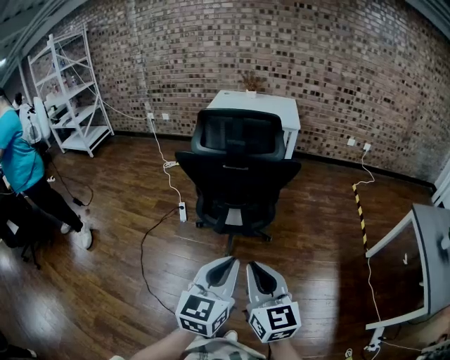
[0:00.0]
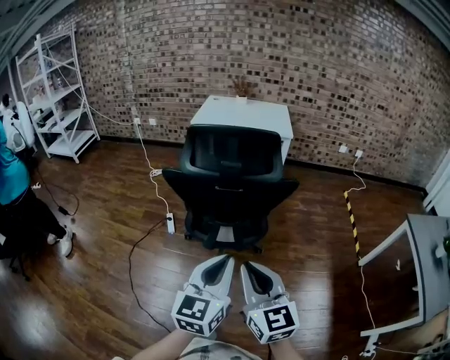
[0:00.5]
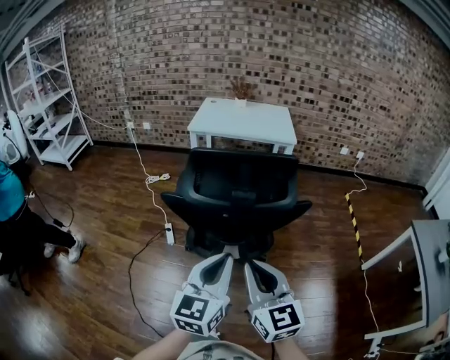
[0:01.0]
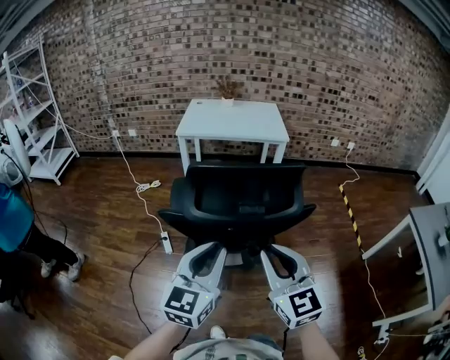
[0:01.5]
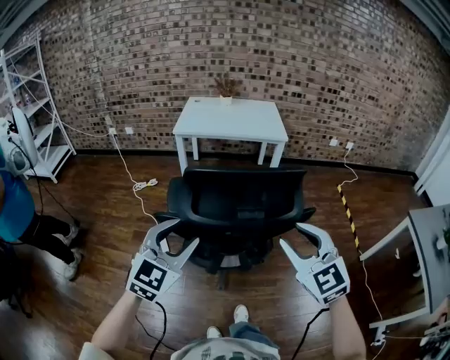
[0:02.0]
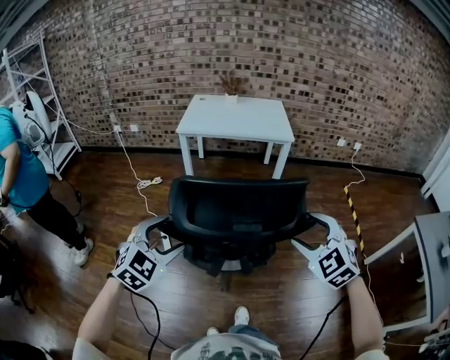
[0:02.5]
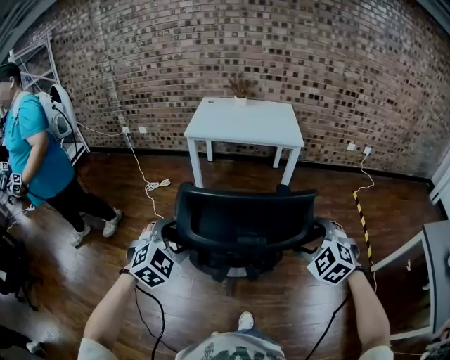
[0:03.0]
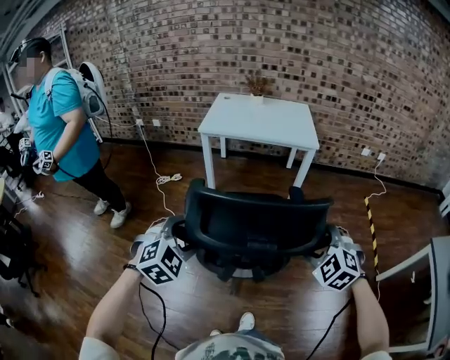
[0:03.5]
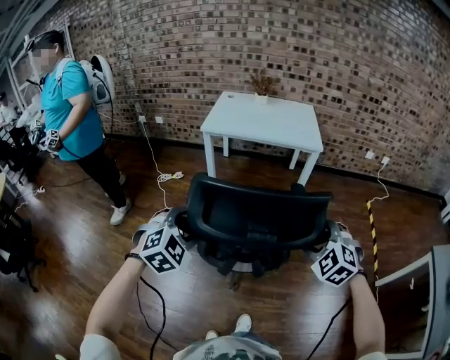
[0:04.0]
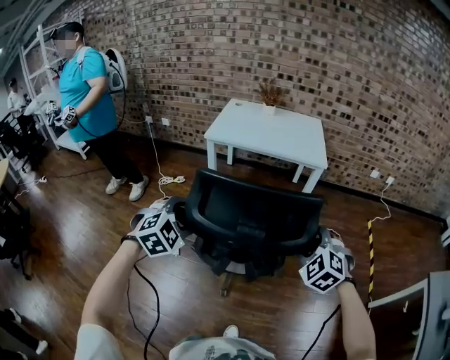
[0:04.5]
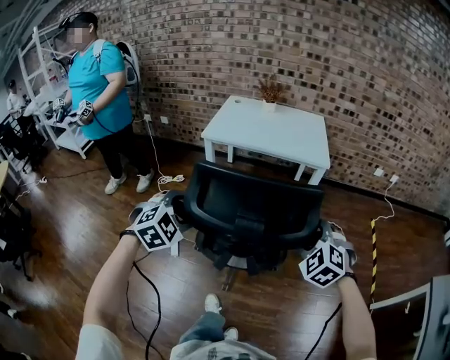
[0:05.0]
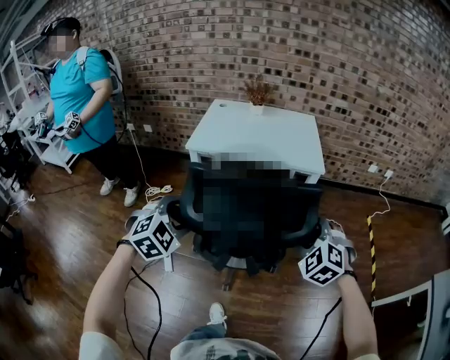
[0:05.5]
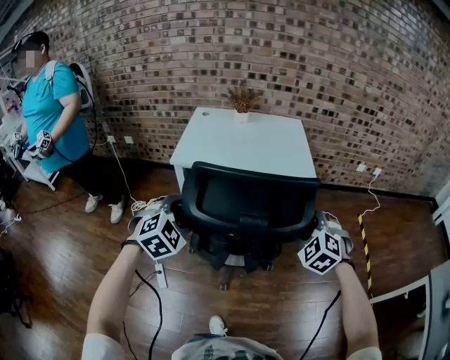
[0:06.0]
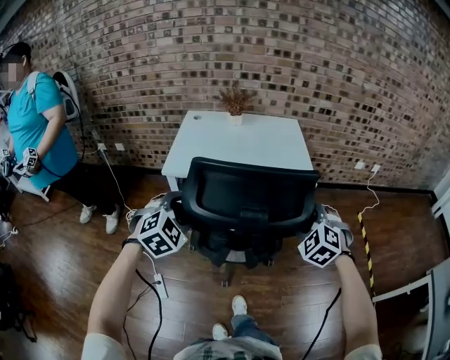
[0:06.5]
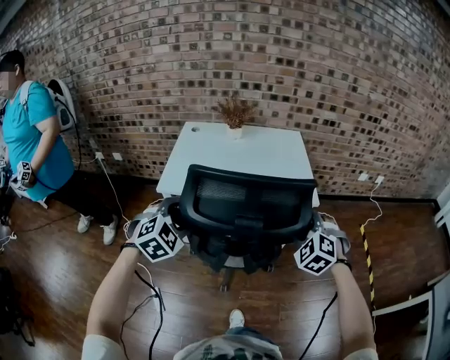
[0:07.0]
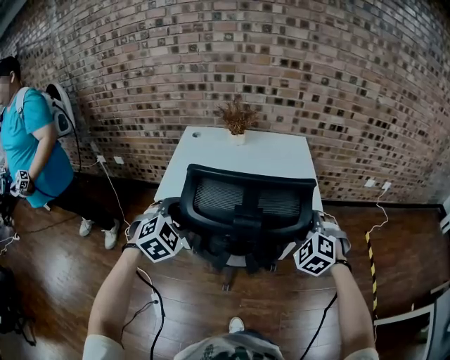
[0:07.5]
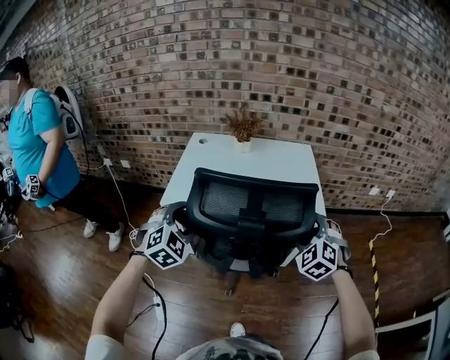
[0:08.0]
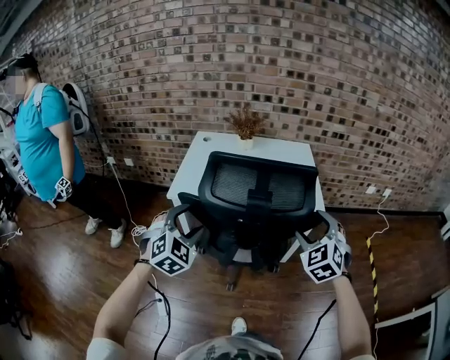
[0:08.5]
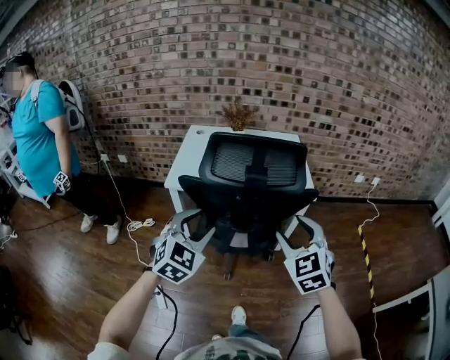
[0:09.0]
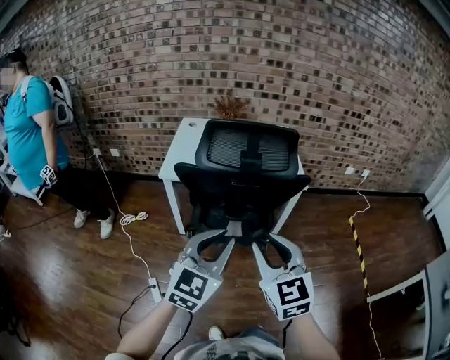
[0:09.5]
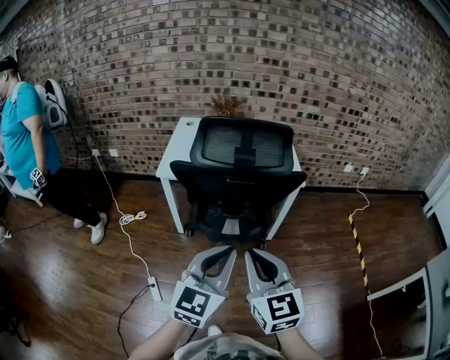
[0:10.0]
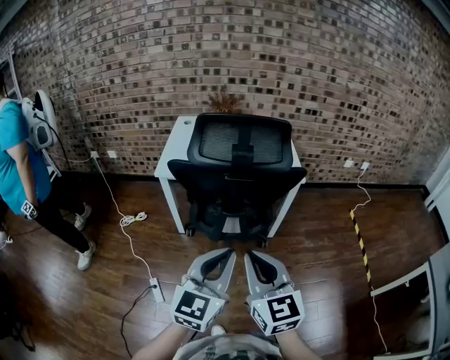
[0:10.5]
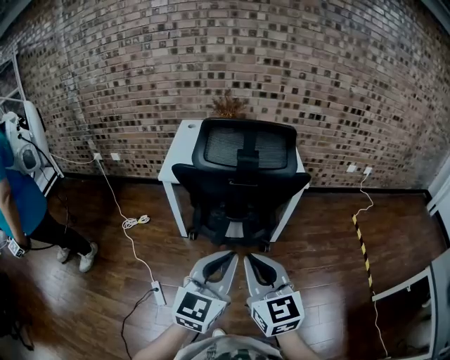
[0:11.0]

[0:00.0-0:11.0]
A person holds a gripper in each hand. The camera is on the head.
0:00.0 to 0:02.0: The left gripper shifts roughly 35 cm forward and to the left, turns by about 30 degrees, and opens, while the right gripper moves forward, approximately 30 cm, swivels roughly 30 degrees, and opens.
0:02.0 to 0:03.5: The right gripper heads forward, downward and to the right, covering about 15 cm, rotates some 30 degrees, and opens up; the left gripper moves forward and downward, about 10 cm, and turns by approximately 30 degrees.
0:03.5 to 0:05.5: The grippers both shift forward by roughly 25 cm.
0:05.5 to 0:07.5: The two grippers go approximately 35 cm forward.
0:07.5 to 0:09.0: The right gripper moves backward and upward, roughly 20 cm, and swivels approximately 30 degrees; the left gripper goes roughly 15 cm backward, and turns by some 20 degrees.
0:09.0 to 0:11.0: The left gripper moves backward and to the right, roughly 15 cm, changes its angle by approximately 30 degrees, and closes its fingers. Meanwhile the right gripper travels backward and to the left by some 15 cm, rotates roughly 30 degrees, and closes.

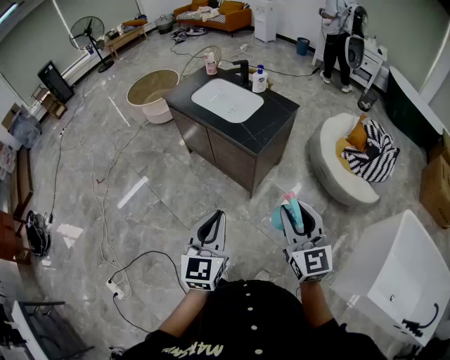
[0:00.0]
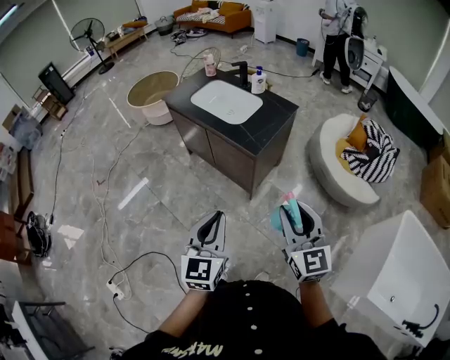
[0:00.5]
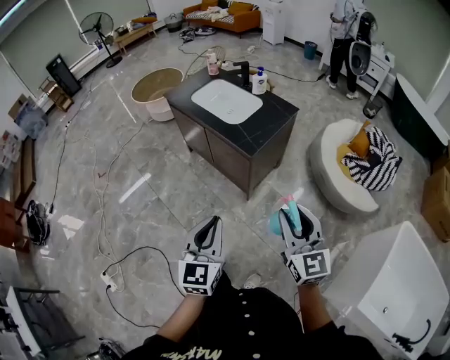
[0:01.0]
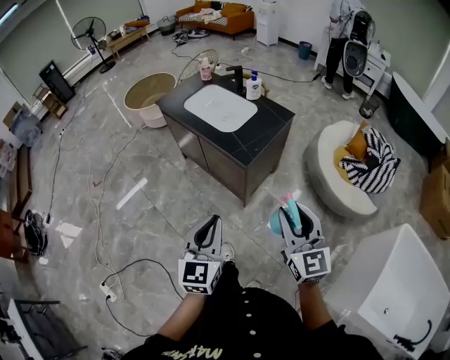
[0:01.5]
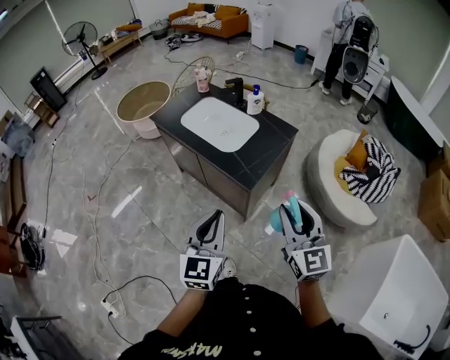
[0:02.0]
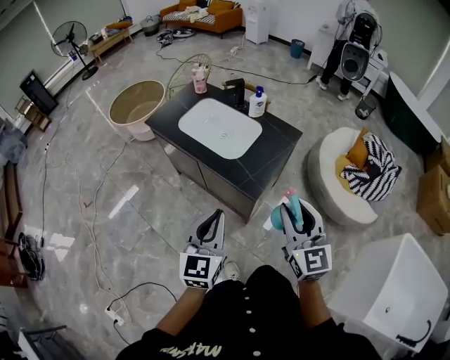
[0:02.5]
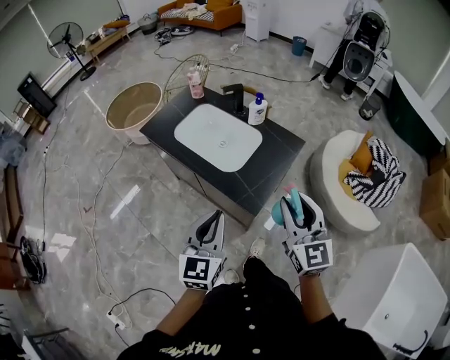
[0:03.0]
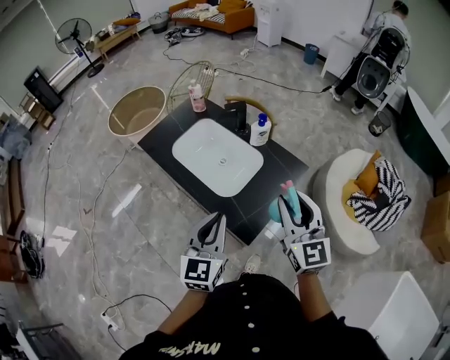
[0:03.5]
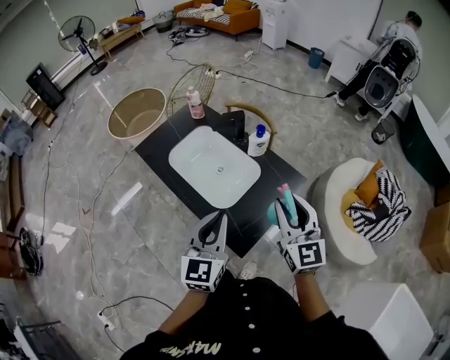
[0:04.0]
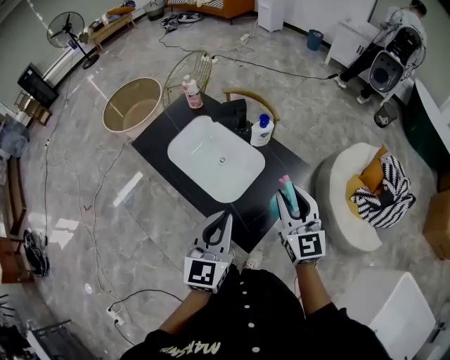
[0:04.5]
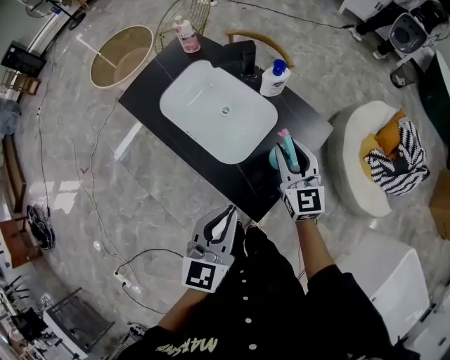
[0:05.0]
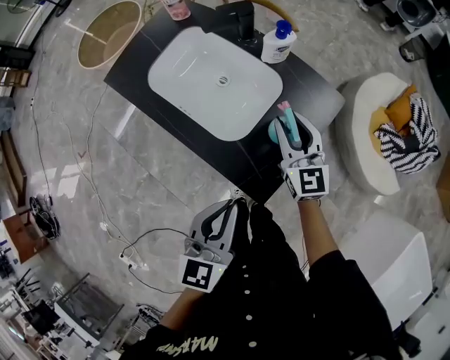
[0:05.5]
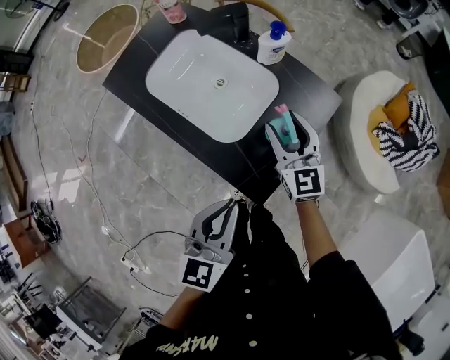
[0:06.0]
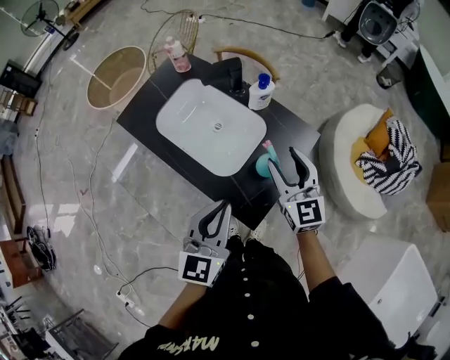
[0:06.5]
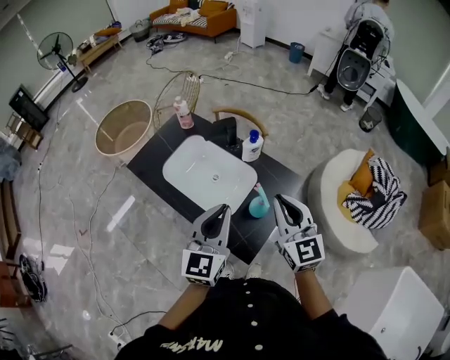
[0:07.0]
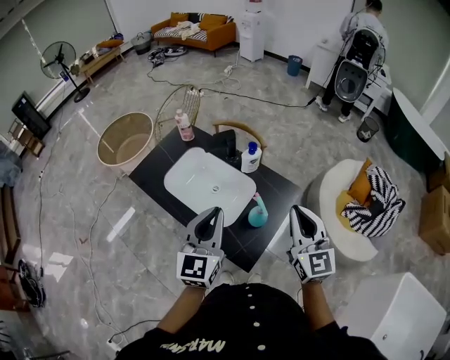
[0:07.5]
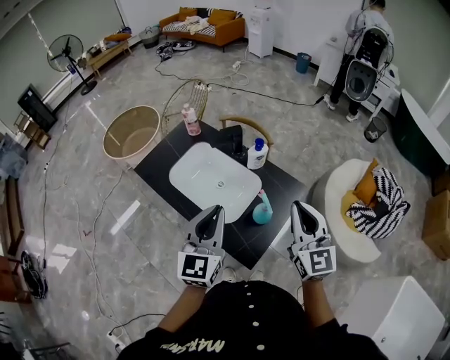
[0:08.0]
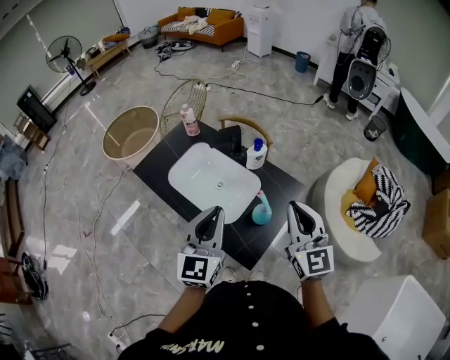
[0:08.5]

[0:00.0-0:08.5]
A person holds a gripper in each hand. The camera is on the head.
0:00.0 to 0:02.0: Both grippers move forward, about 20 cm.
0:02.0 to 0:04.0: Both grippers travel together forward, some 35 cm.
0:04.0 to 0:06.5: The left gripper travels downward by about 5 cm. The right gripper goes about 15 cm downward and forward, and opens up.
0:06.5 to 0:08.5: The right gripper is displaced upward by about 15 cm, and closes its fingers. The left gripper heads upward and forward, covering about 10 cm.

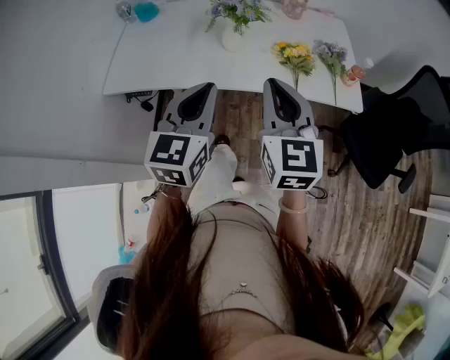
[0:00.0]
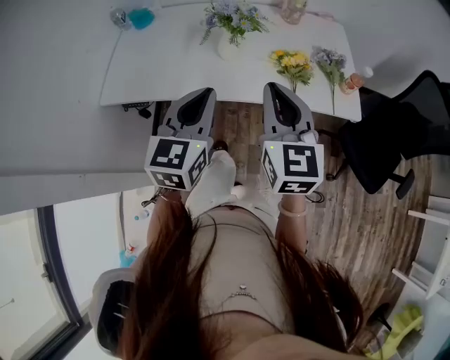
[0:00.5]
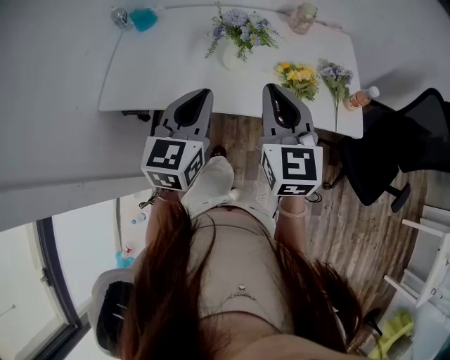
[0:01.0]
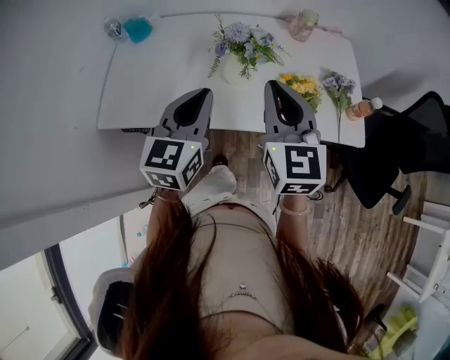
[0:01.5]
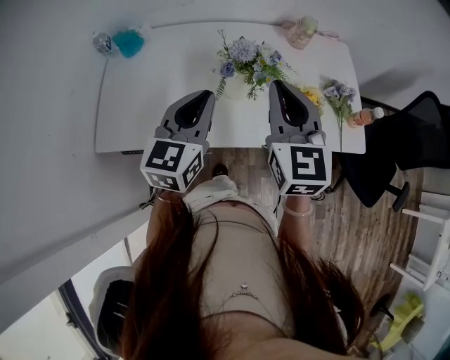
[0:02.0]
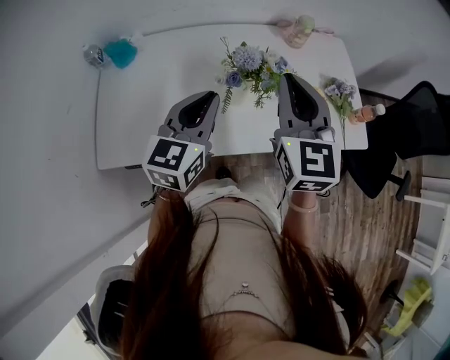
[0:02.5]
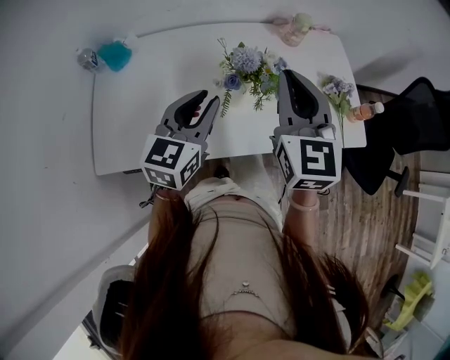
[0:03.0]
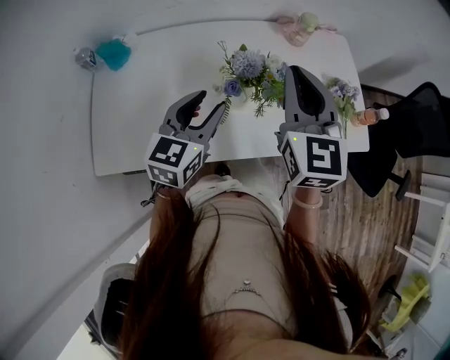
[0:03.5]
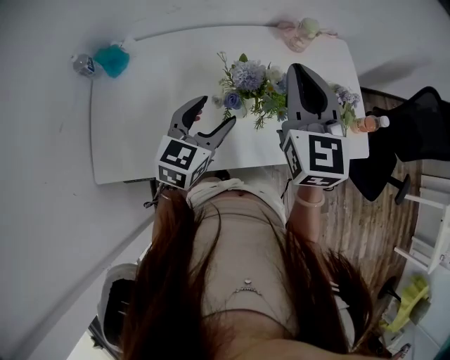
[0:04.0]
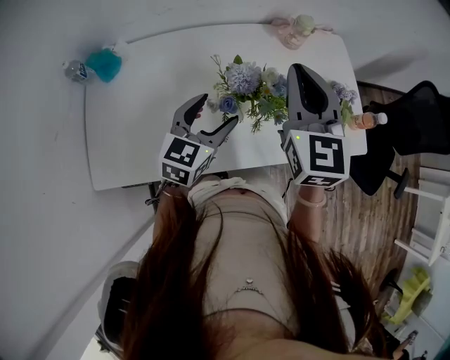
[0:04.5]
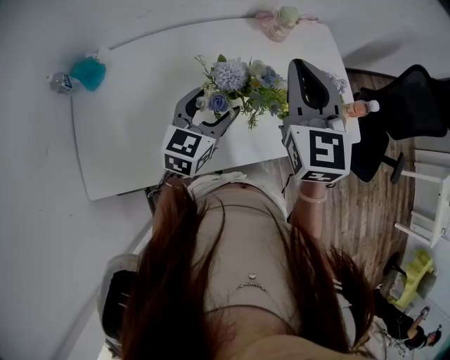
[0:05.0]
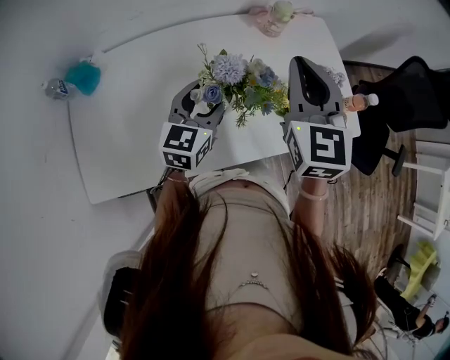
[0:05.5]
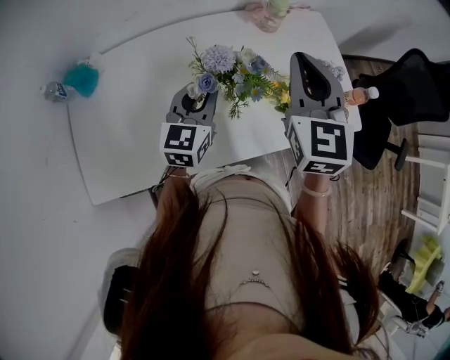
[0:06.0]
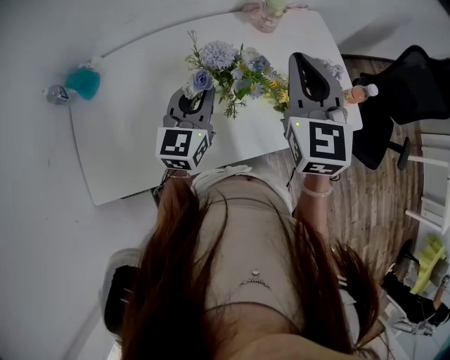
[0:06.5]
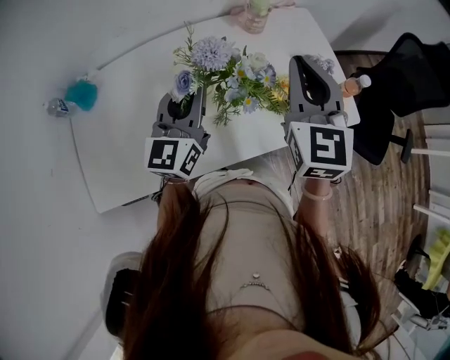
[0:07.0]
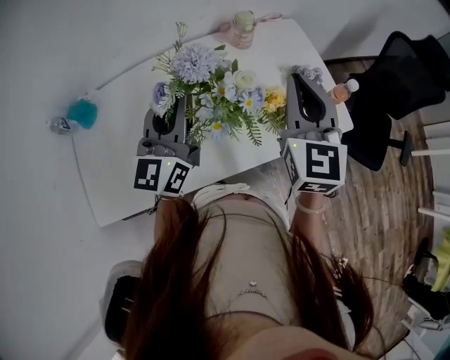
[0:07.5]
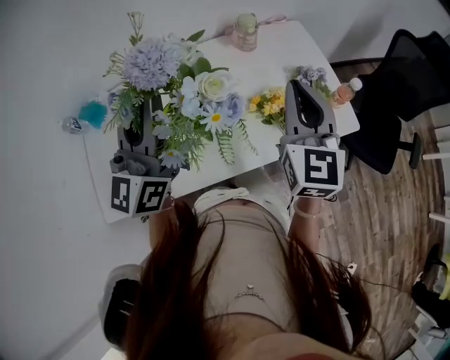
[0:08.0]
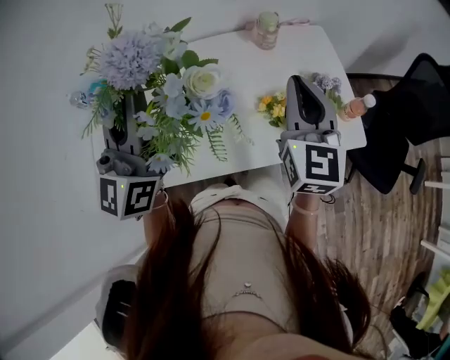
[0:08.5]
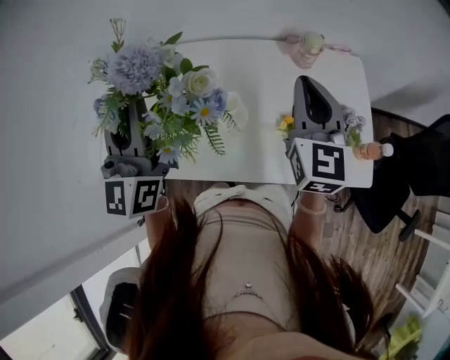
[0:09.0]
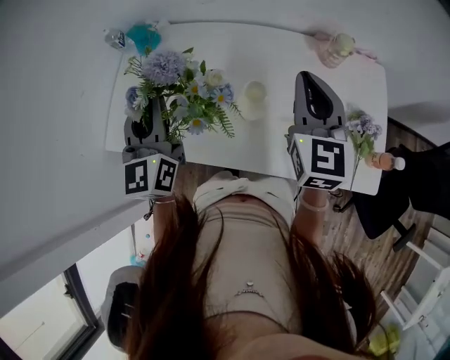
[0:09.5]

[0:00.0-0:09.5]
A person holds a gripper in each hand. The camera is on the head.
0:00.0 to 0:02.0: The grippers both shift forward by approximately 25 cm.
0:02.0 to 0:04.0: The left gripper goes some 10 cm downward and forward, and opens its fingers, while the right gripper moves forward, some 10 cm.
0:04.0 to 0:05.5: The left gripper moves forward, roughly 5 cm; the right gripper moves about 5 cm.
0:05.5 to 0:07.5: The right gripper heads to the right, covering approximately 10 cm. Meanwhile the left gripper heads upward, covering approximately 15 cm, rotates roughly 30 degrees, and closes.
0:07.5 to 0:09.5: The left gripper travels upward and back again, some 10 cm each way, and swivels some 50 degrees, while the right gripper ends up roughly 15 cm from where it was, and turns by some 30 degrees.
